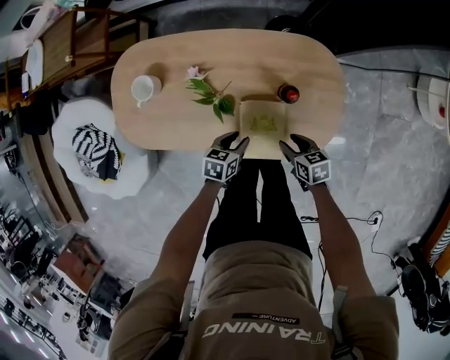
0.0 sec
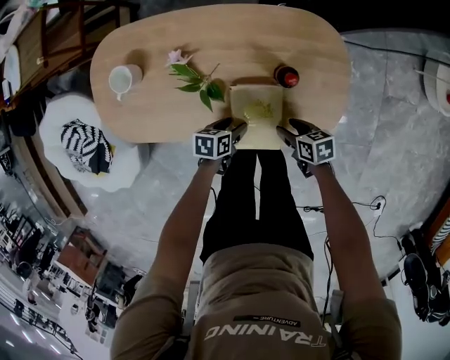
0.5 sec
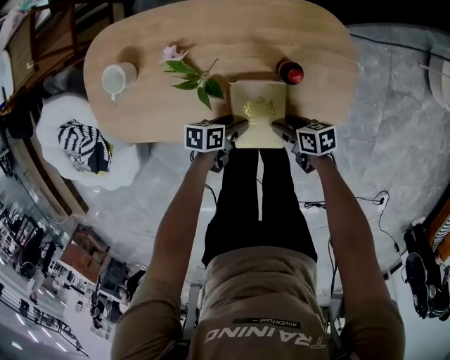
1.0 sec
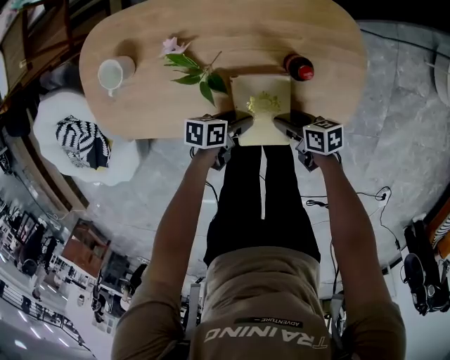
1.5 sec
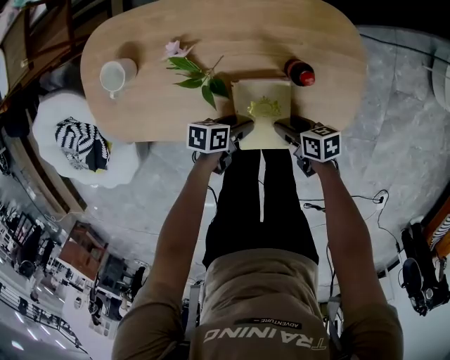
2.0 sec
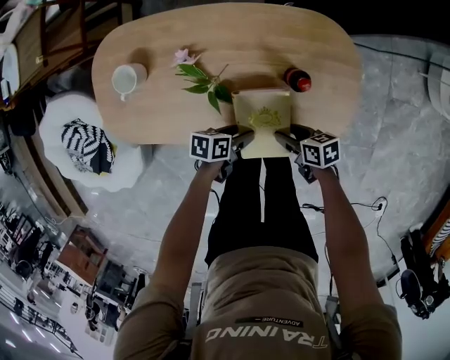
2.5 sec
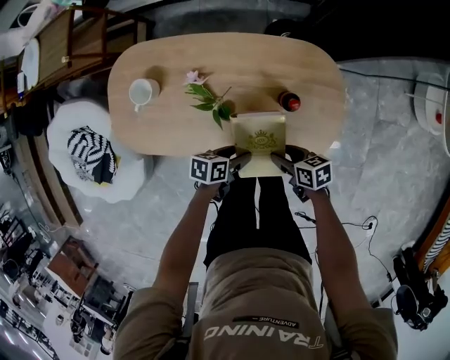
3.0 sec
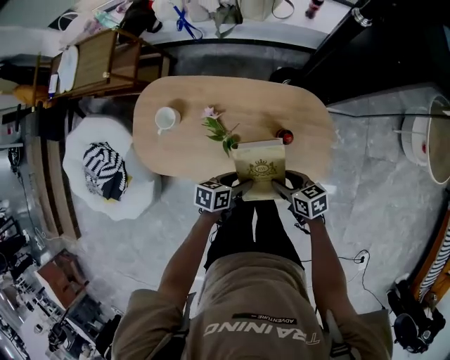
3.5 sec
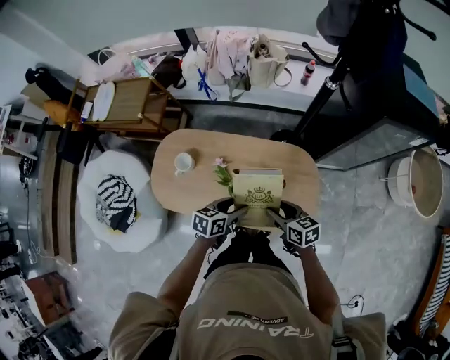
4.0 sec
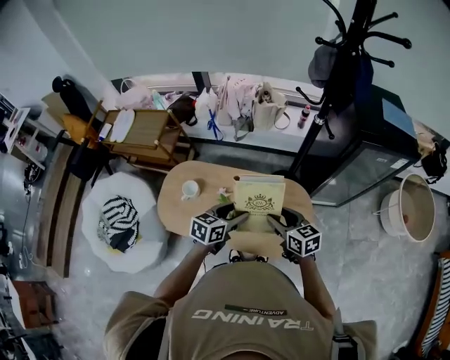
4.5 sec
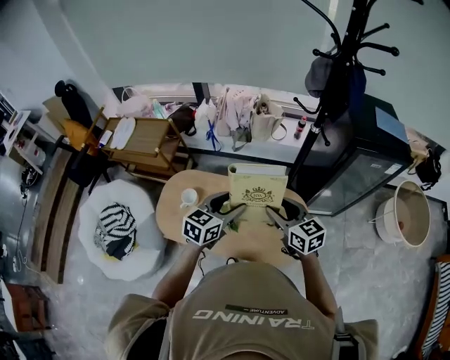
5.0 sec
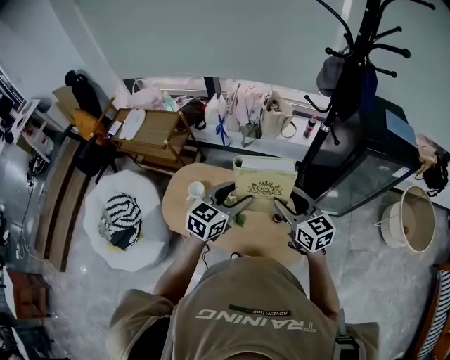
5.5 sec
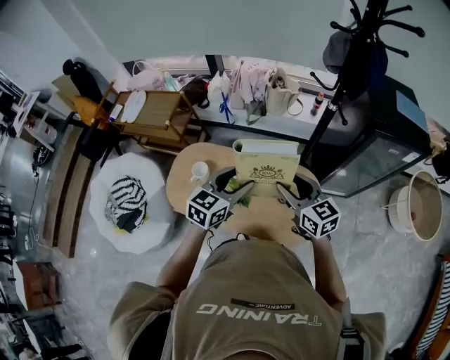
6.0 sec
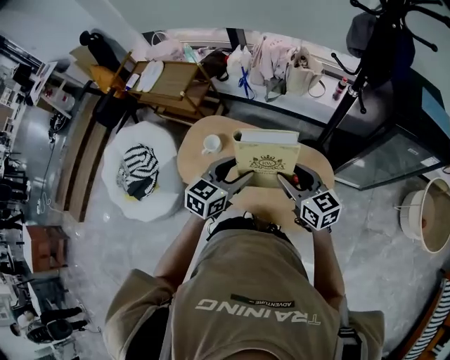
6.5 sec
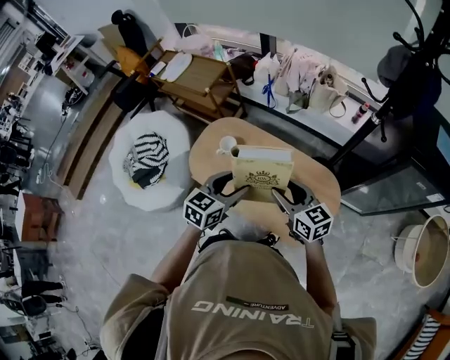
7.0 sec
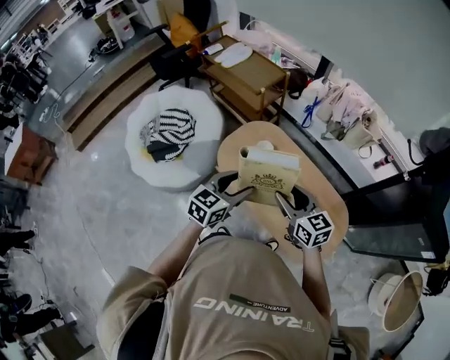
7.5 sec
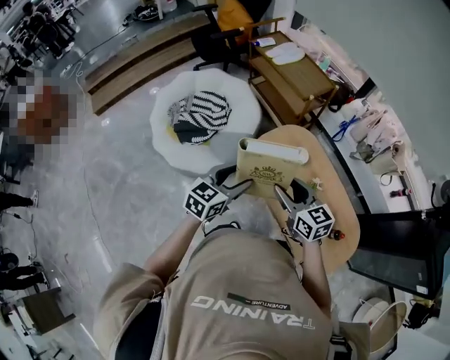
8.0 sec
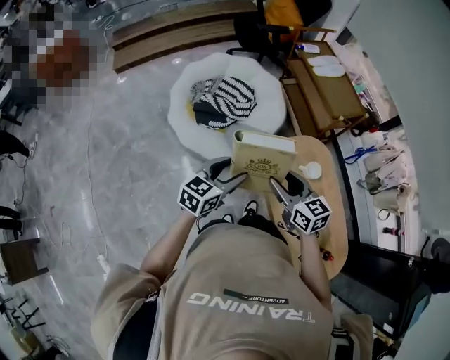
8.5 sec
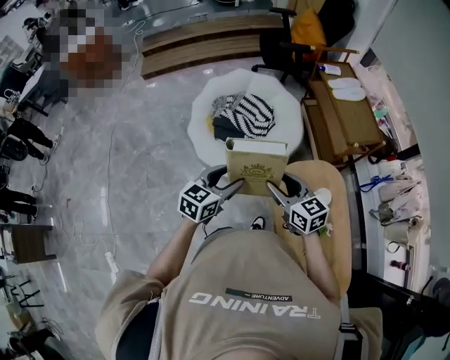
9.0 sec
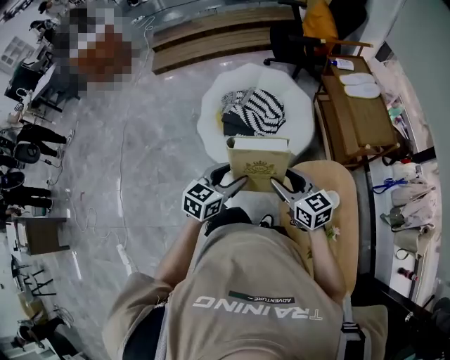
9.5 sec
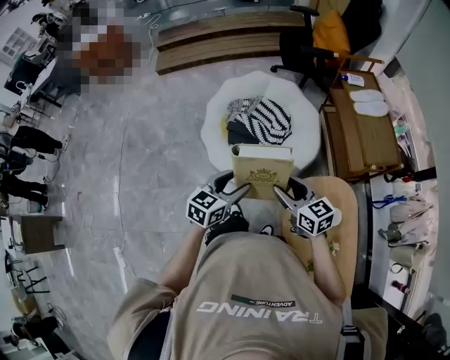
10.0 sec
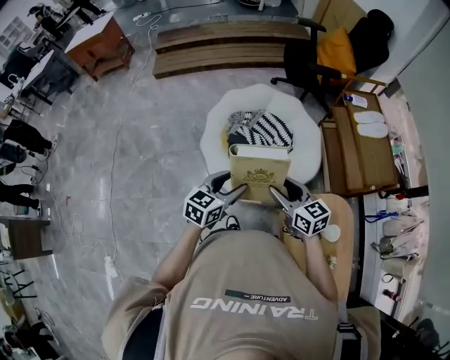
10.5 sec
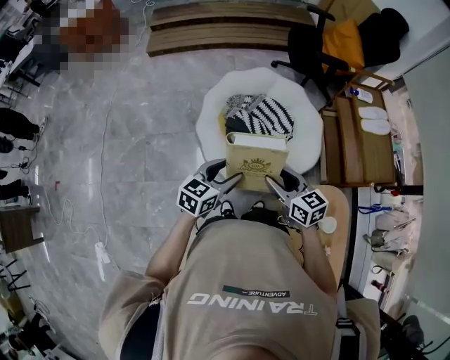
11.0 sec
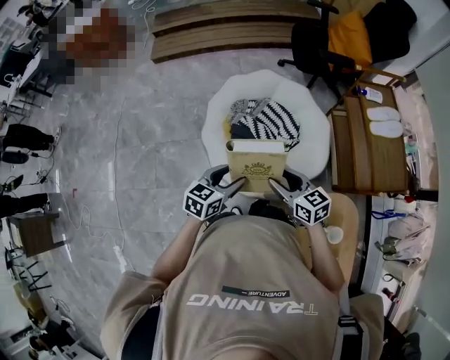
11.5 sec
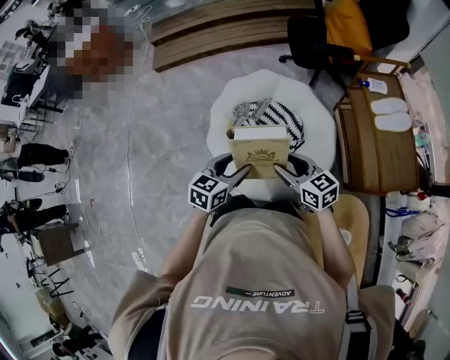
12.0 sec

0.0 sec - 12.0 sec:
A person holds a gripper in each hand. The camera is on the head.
0.0 sec - 2.0 sec: The two grippers go approximately 10 cm downward. The left gripper swivels roughly 30 degrees, and opens.
2.0 sec - 4.0 sec: The grippers both shift upward by roughly 35 cm. The left gripper rotates approximately 30 degrees. The right gripper swivels approximately 30 degrees.
4.0 sec - 6.0 sec: The two grippers go some 25 cm upward. The right gripper swivels about 30 degrees; the left gripper turns by some 40 degrees.
6.0 sec - 8.0 sec: The pair of grippers is taken roughly 40 cm. The left gripper rotates some 40 degrees; the right gripper changes its angle by about 40 degrees.
8.0 sec - 10.0 sec: The left gripper moves some 20 cm, and rotates about 30 degrees, while the right gripper ends up approximately 25 cm from where it was, and rotates some 30 degrees.
10.0 sec - 12.0 sec: Both grippers travel together forward, about 25 cm.

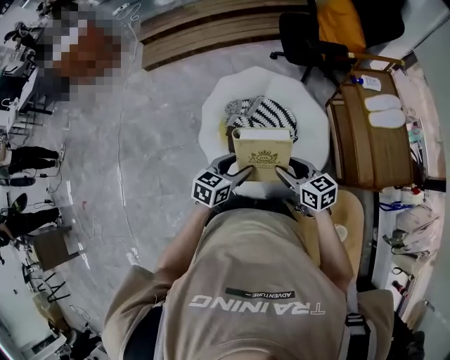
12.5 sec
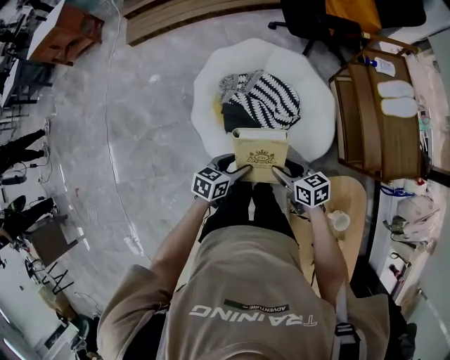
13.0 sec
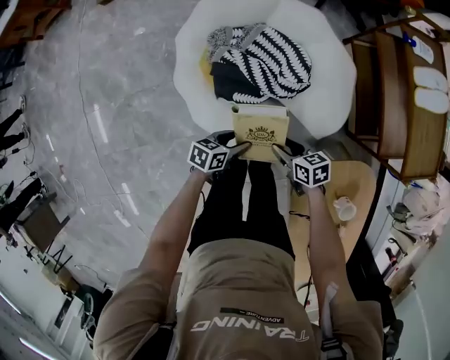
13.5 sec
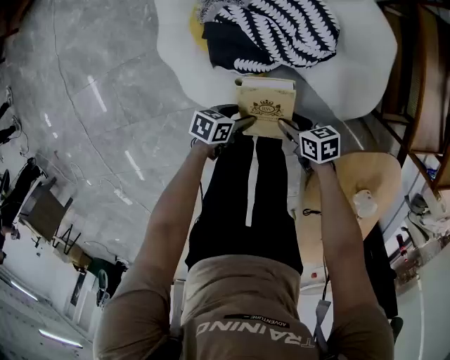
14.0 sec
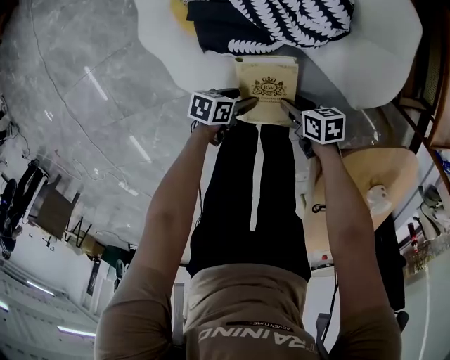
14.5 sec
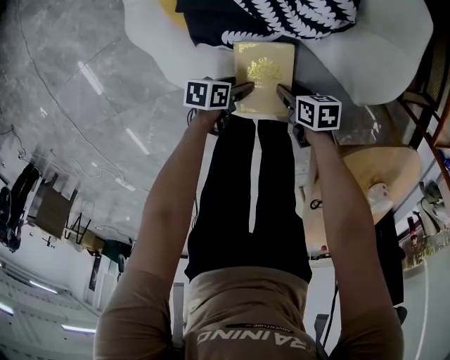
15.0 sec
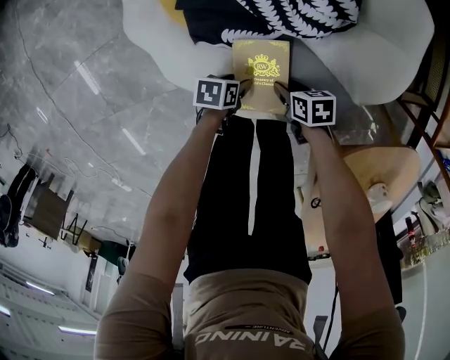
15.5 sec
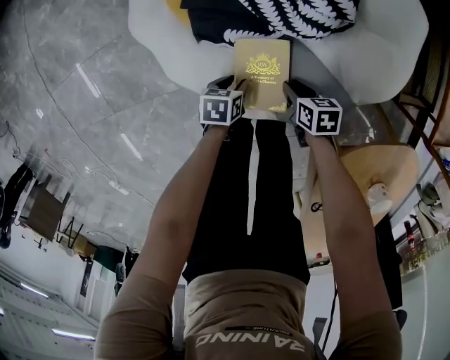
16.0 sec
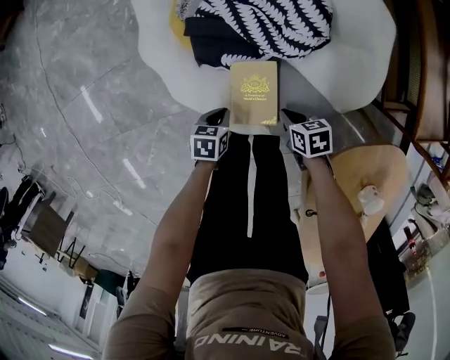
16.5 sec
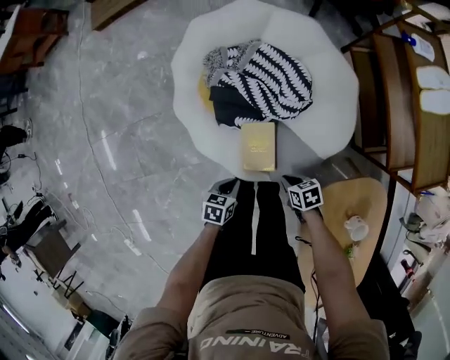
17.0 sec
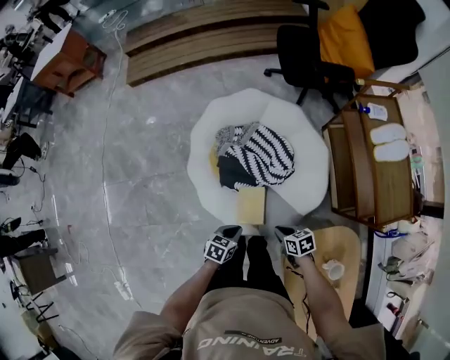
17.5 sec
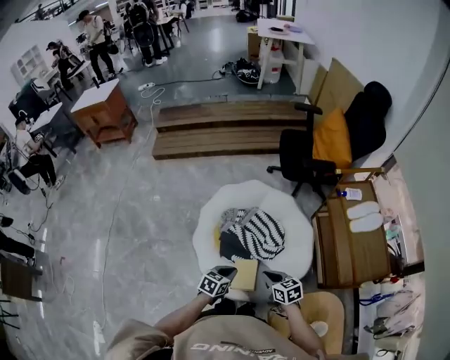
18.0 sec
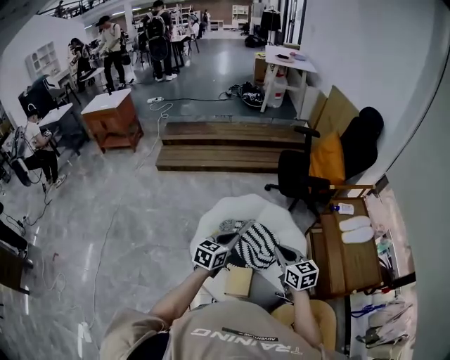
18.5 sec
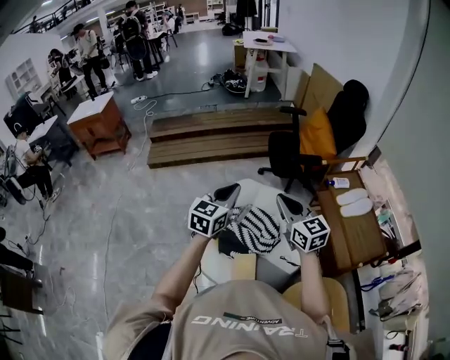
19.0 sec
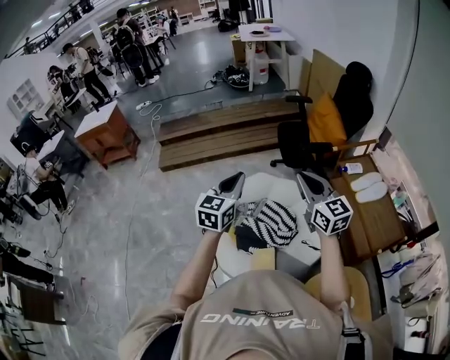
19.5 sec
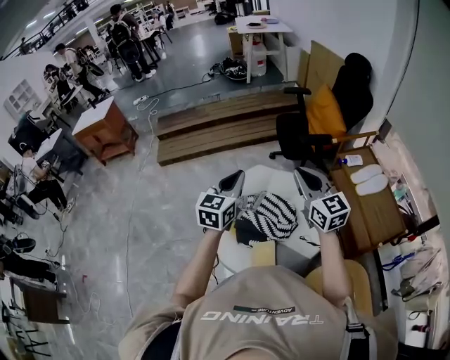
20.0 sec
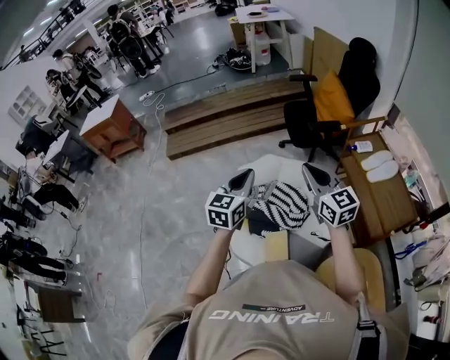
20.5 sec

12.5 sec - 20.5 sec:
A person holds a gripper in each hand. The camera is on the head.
12.5 sec - 14.5 sec: The two grippers go approximately 50 cm downward. The left gripper swivels roughly 50 degrees. Meanwhile the right gripper turns by some 50 degrees.
14.5 sec - 16.5 sec: The right gripper closes up. The left gripper ends up roughly 5 cm from where it was, rotates about 30 degrees, and closes its fingers.
16.5 sec - 18.5 sec: Both grippers travel together upward, some 60 cm. The right gripper tips its fingers upward by about 40 degrees. The left gripper angles its fingers upward, by some 40 degrees.
18.5 sec - 20.5 sec: Both grippers travel together upward, roughly 15 cm. The right gripper rotates approximately 20 degrees.

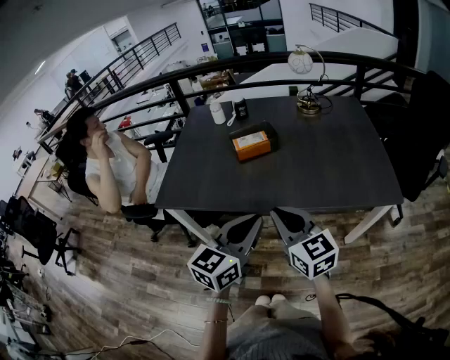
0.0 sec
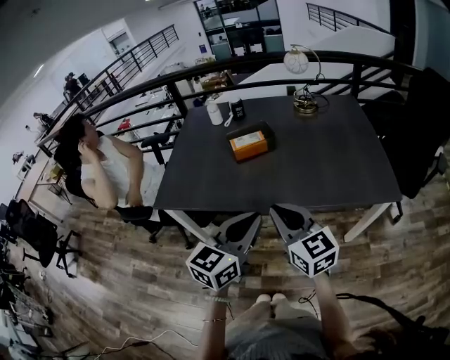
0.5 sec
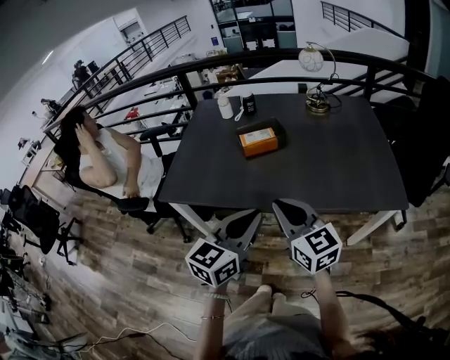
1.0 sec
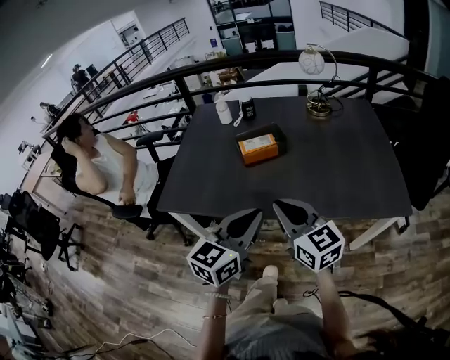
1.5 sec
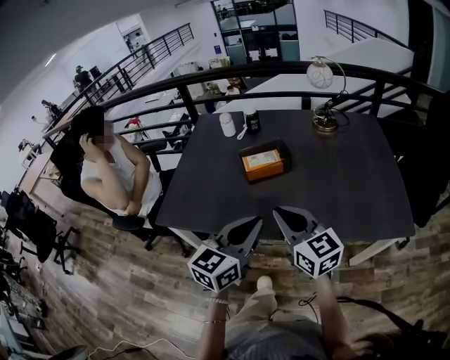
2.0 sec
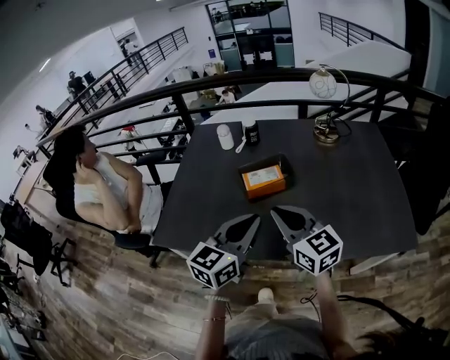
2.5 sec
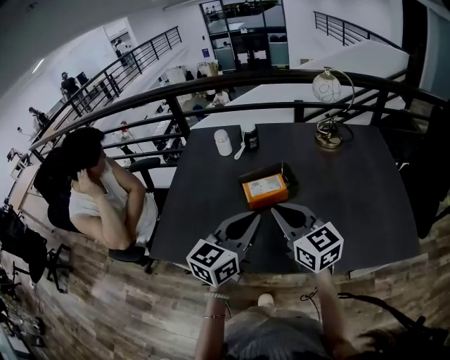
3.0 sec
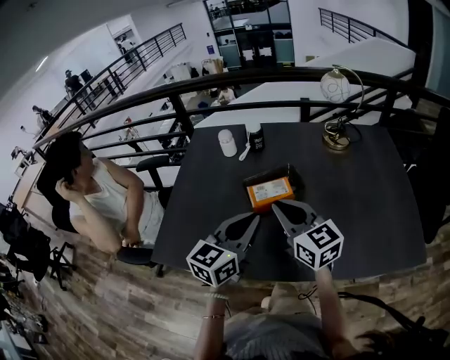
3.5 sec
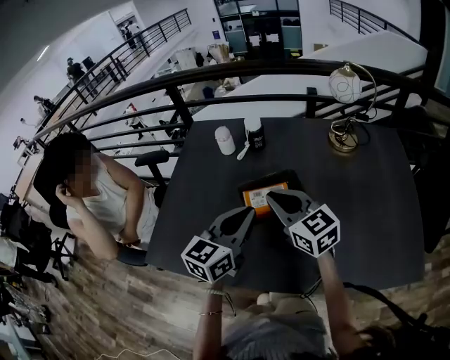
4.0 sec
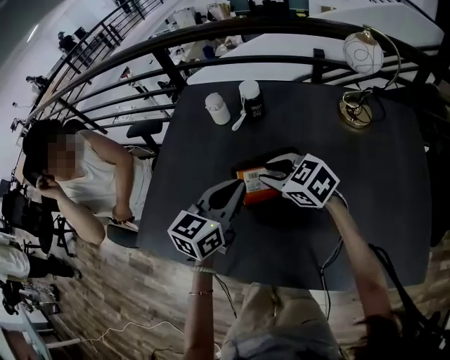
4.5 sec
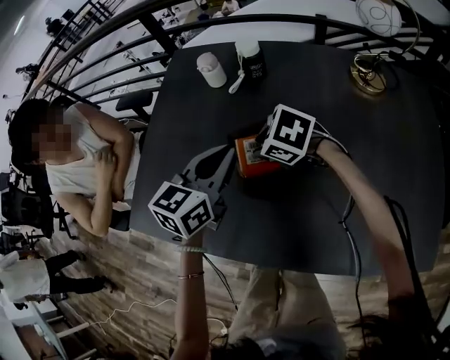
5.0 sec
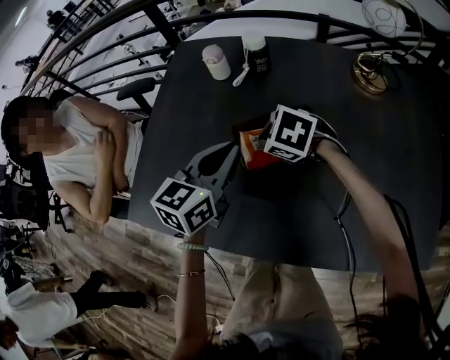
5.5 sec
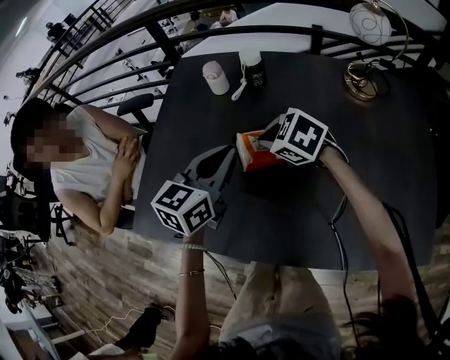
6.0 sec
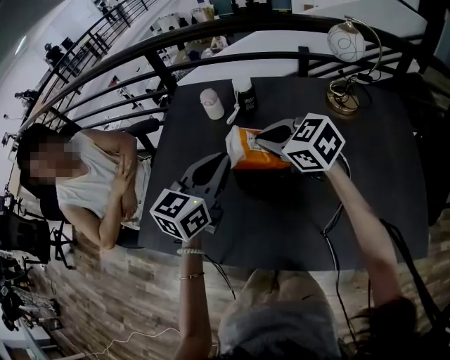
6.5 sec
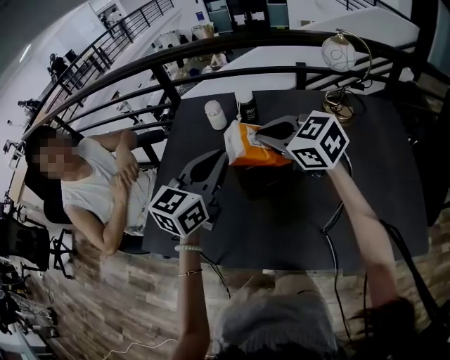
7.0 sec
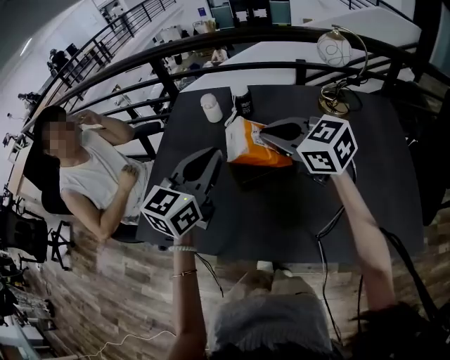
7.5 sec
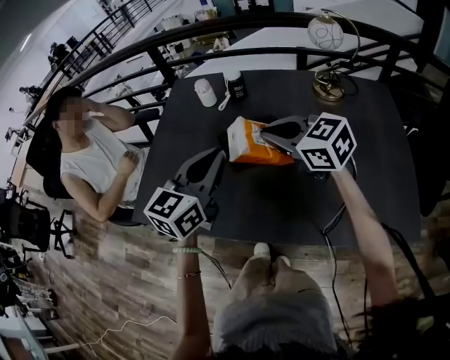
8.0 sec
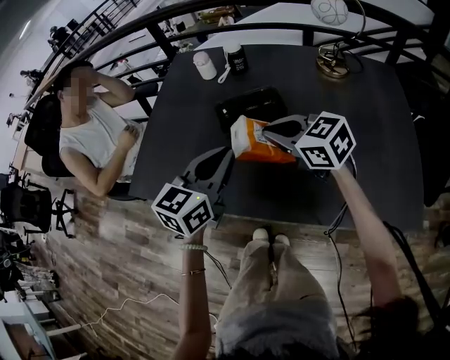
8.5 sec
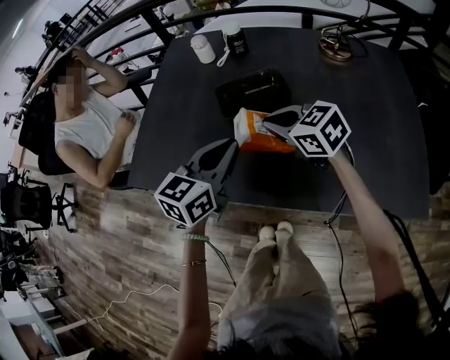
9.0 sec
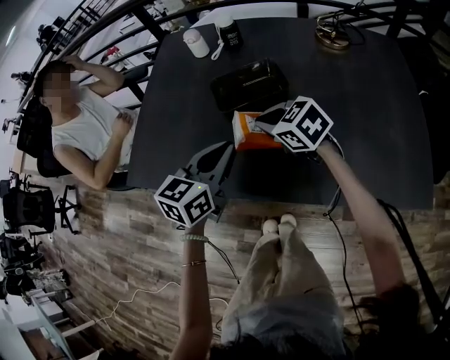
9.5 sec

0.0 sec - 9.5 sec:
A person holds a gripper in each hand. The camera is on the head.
0.0 sec - 2.0 sec: Both grippers move forward, about 10 cm.
2.0 sec - 4.0 sec: The two grippers go about 25 cm forward.
4.0 sec - 5.5 sec: The right gripper goes some 15 cm downward and forward, tilts its fingers roughly 50 degrees downward, and opens, then closes again. The left gripper heads forward and downward, covering about 10 cm.
5.5 sec - 7.5 sec: The left gripper heads upward, covering about 10 cm. The right gripper shifts roughly 20 cm upward, and tips its fingers upward by roughly 40 degrees.
7.5 sec - 9.5 sec: The two grippers go about 20 cm downward and backward.
